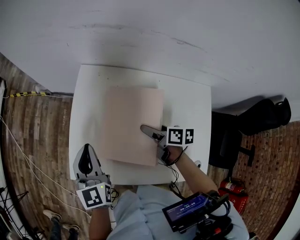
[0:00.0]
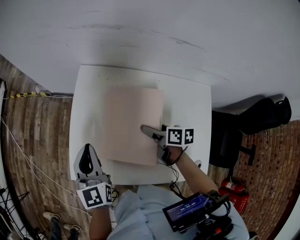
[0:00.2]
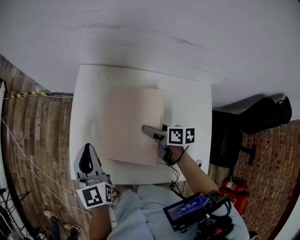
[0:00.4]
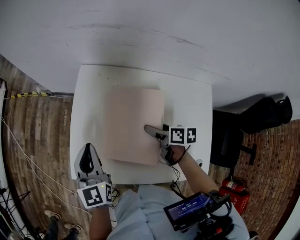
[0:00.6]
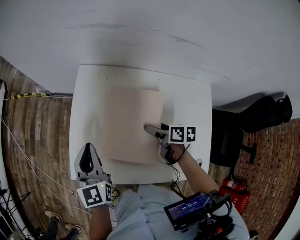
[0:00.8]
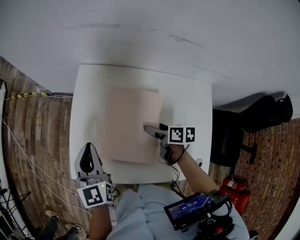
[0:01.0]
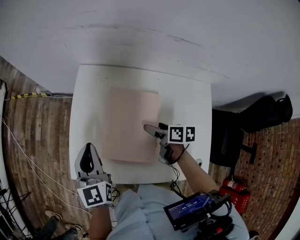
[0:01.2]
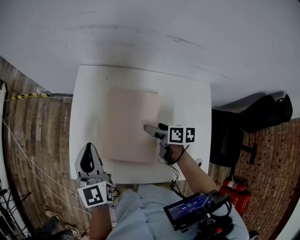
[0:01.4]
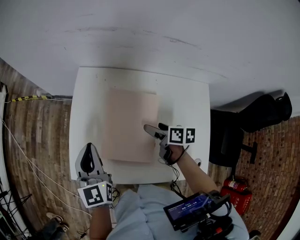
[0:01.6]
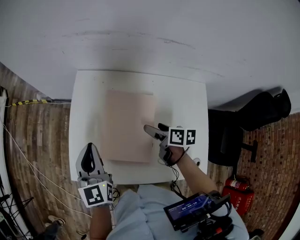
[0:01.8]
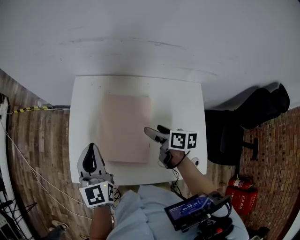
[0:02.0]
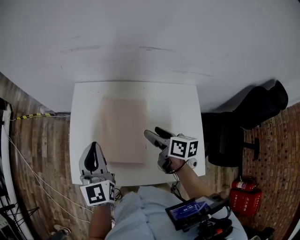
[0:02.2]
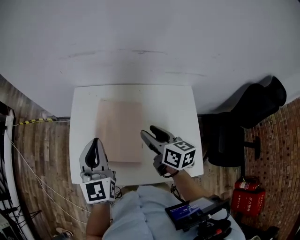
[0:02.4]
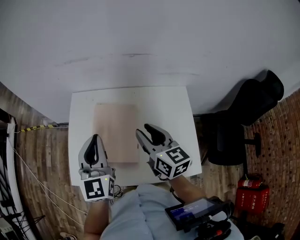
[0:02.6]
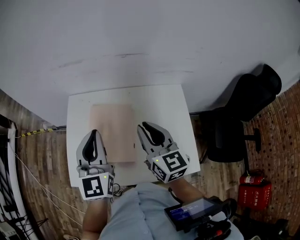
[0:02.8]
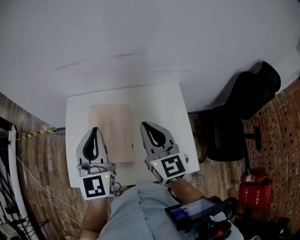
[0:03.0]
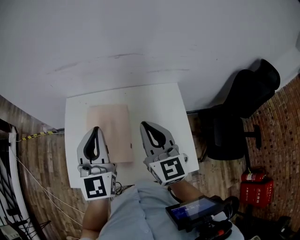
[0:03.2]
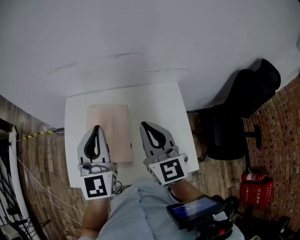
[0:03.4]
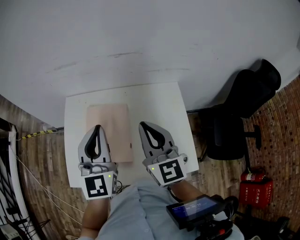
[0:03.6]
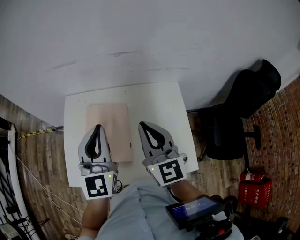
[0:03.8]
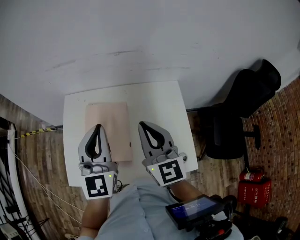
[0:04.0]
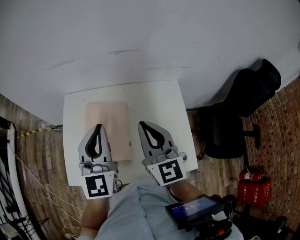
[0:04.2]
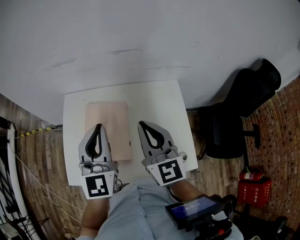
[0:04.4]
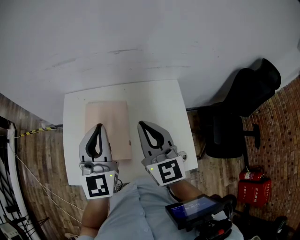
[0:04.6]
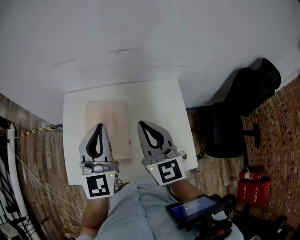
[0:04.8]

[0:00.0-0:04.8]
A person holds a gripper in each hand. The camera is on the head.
0:00.0 to 0:01.6: The grippers stay close to where they were, moving slightly.
0:01.6 to 0:03.2: The right gripper goes about 30 cm upward, points its fingers some 40 degrees further upward, and closes up; the left gripper is displaced to the right and upward by approximately 25 cm, and turns by approximately 30 degrees.
0:03.2 to 0:04.8: The grippers make only small movements.

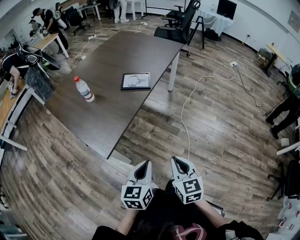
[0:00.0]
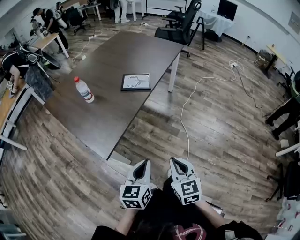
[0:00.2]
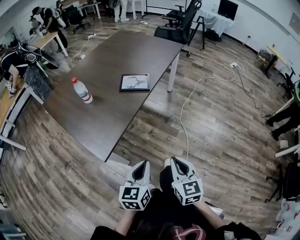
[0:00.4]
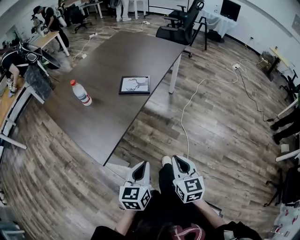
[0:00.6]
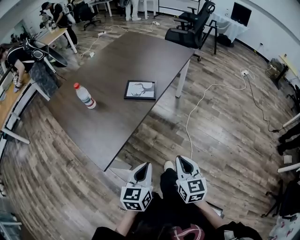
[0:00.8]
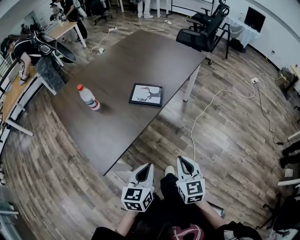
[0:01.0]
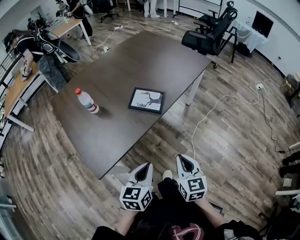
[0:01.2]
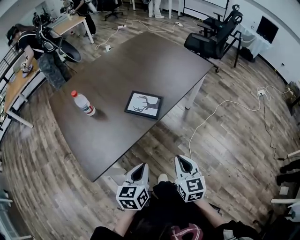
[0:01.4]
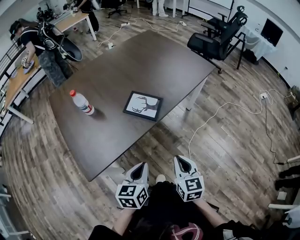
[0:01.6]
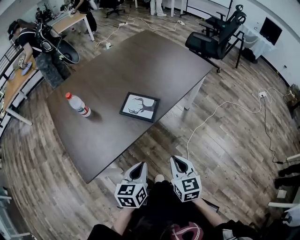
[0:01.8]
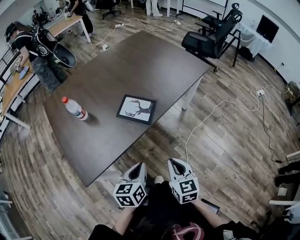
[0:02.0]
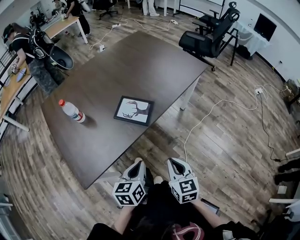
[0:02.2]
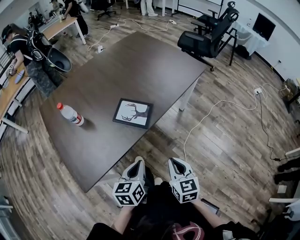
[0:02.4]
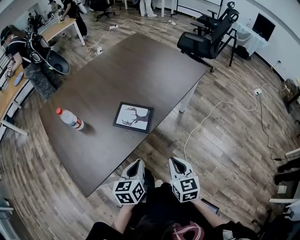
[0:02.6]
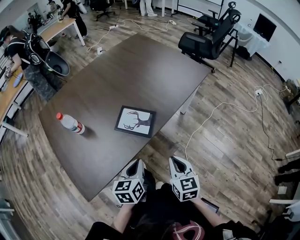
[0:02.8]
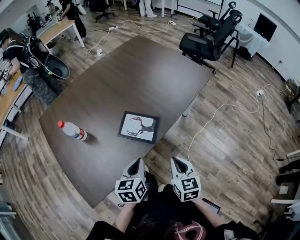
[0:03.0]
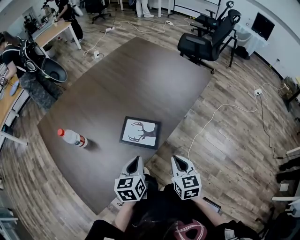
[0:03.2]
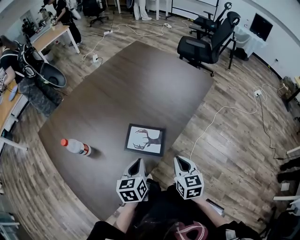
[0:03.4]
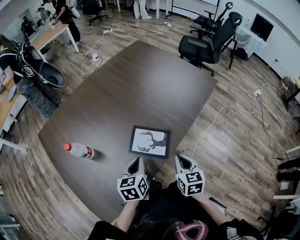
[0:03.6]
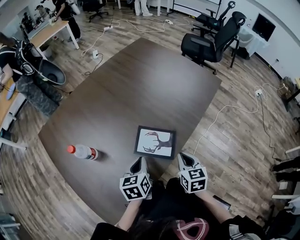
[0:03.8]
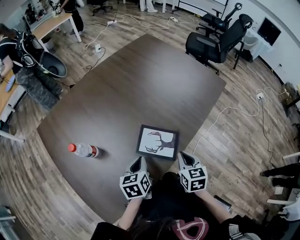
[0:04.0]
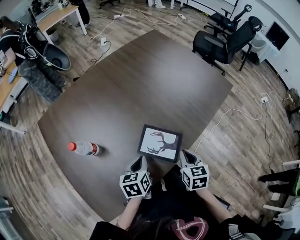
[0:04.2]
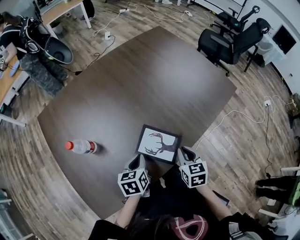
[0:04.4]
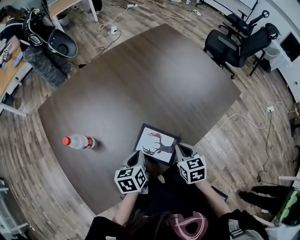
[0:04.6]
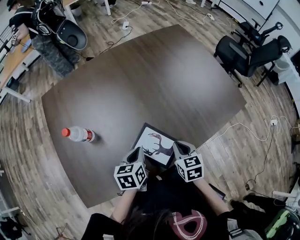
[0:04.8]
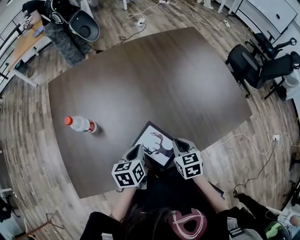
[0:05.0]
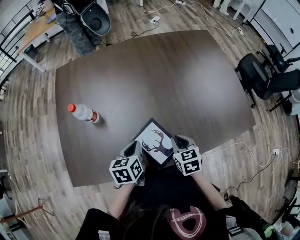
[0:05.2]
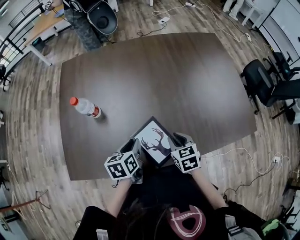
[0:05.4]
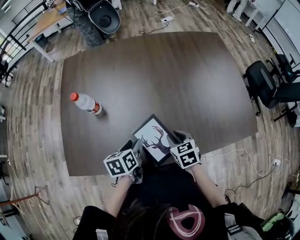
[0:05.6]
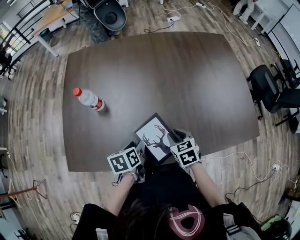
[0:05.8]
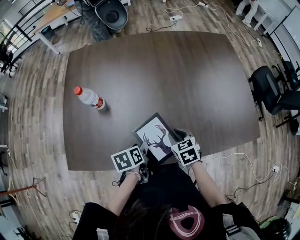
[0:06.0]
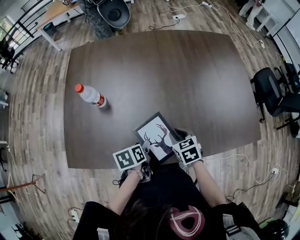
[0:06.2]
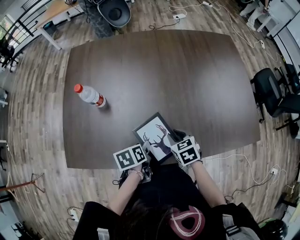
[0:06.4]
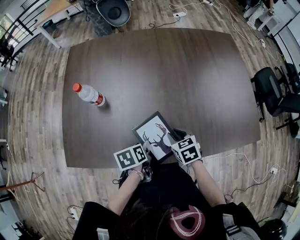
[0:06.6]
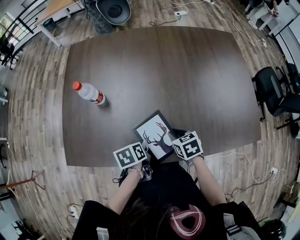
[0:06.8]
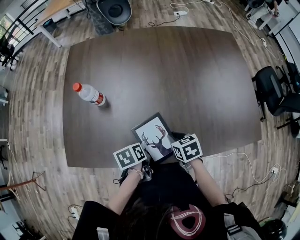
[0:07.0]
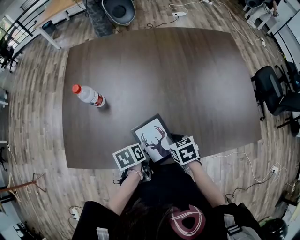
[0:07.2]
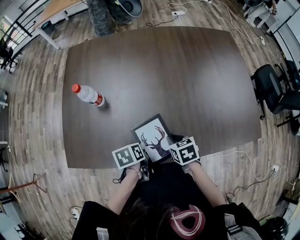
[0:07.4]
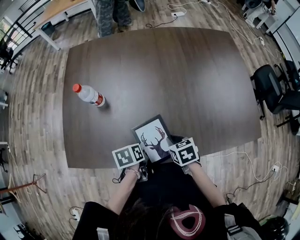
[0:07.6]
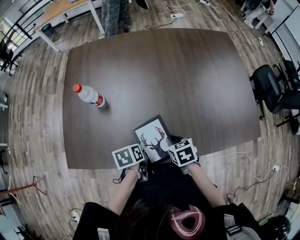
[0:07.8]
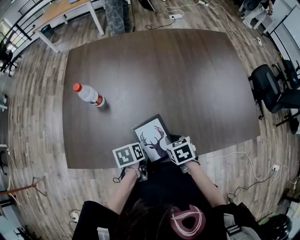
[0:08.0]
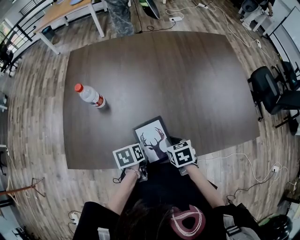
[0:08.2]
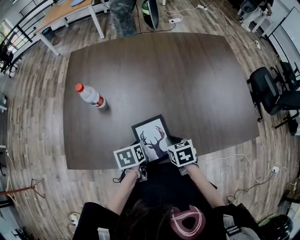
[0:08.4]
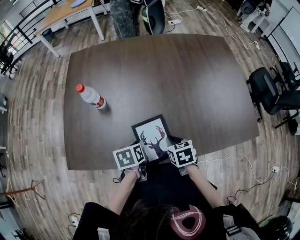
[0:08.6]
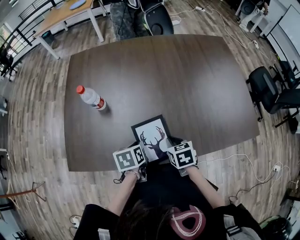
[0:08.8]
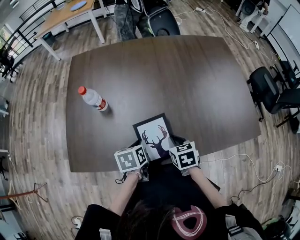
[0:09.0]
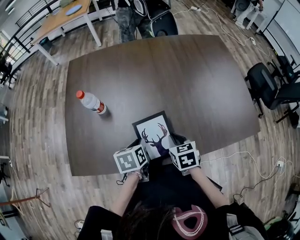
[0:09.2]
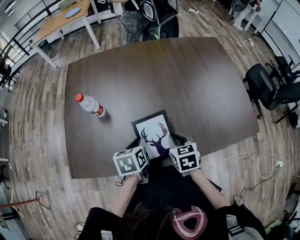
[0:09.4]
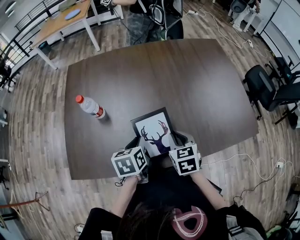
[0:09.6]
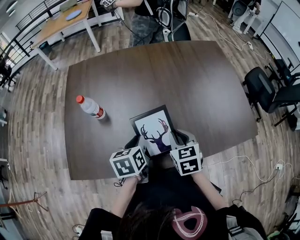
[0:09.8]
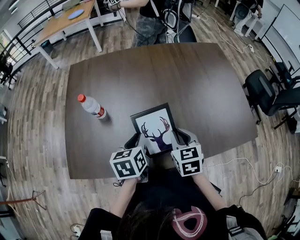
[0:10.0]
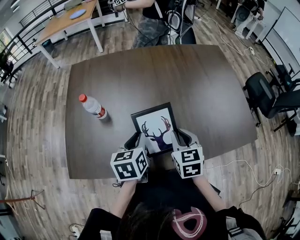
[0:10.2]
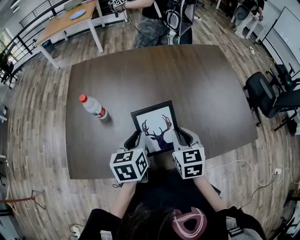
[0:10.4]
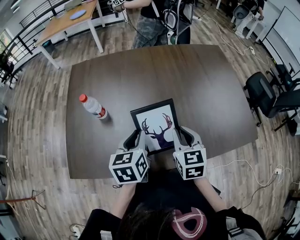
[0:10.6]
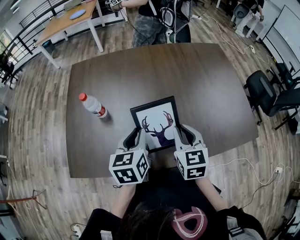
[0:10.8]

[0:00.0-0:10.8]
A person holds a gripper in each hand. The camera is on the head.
0:00.0 to 0:01.6: The grippers both shift forward by about 25 cm. The left gripper rotates approximately 20 degrees.
0:01.6 to 0:03.0: The two grippers go some 15 cm forward.
0:03.0 to 0:04.6: The left gripper shifts some 20 cm forward and to the left; the right gripper shifts about 20 cm forward, and swivels about 20 degrees.
0:04.6 to 0:06.2: The left gripper goes approximately 5 cm downward, turns by approximately 40 degrees, and opens up. Meanwhile the right gripper moves roughly 10 cm, rotates about 40 degrees, and opens up.
0:06.2 to 0:07.8: The left gripper closes up.
0:07.8 to 0:09.2: The left gripper travels upward by some 5 cm.
0:09.2 to 0:10.8: Both grippers move upward, some 15 cm. The left gripper turns by some 30 degrees. The right gripper changes its angle by some 30 degrees.

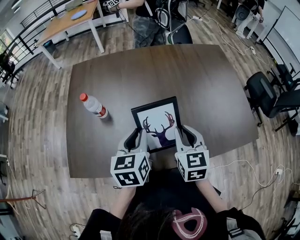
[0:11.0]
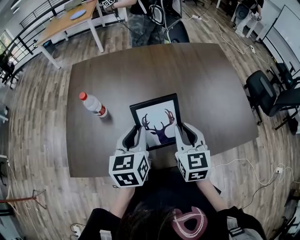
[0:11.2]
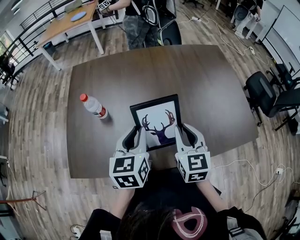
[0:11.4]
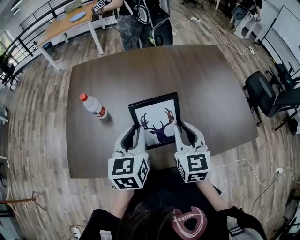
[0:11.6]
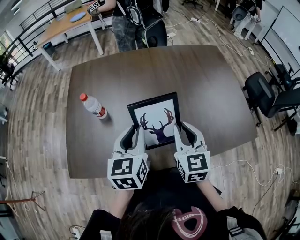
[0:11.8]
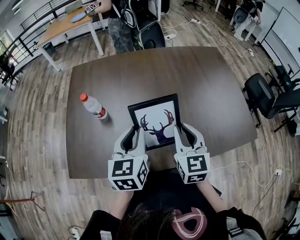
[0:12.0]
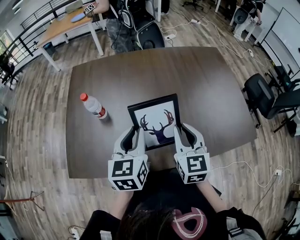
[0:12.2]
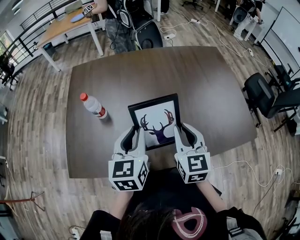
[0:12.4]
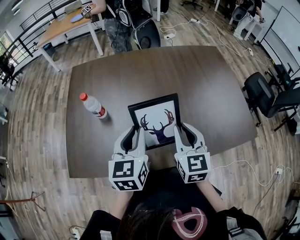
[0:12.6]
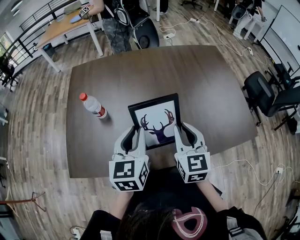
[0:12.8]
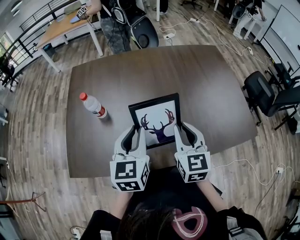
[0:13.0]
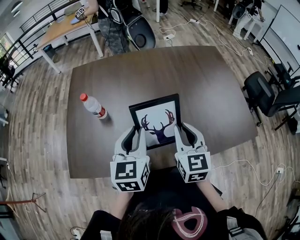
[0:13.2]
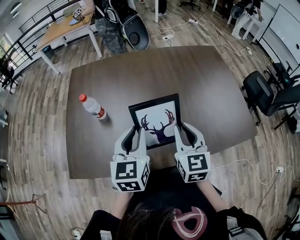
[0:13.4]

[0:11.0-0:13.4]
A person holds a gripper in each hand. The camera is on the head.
0:11.0 to 0:13.4: There are only small adjustments of the grippers.

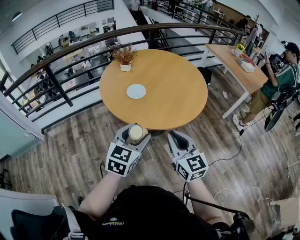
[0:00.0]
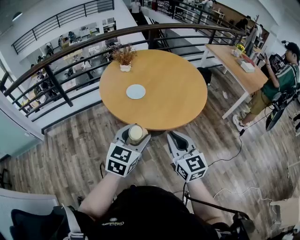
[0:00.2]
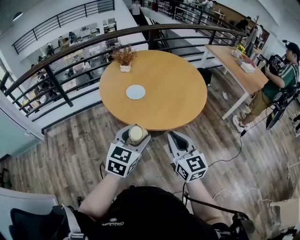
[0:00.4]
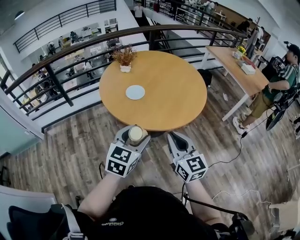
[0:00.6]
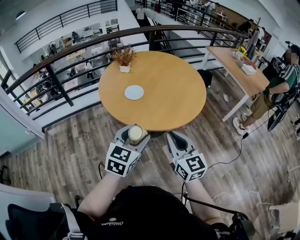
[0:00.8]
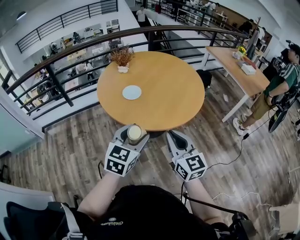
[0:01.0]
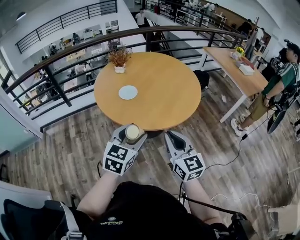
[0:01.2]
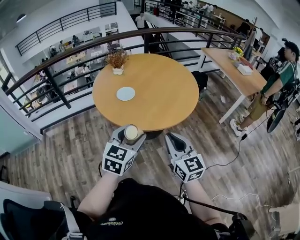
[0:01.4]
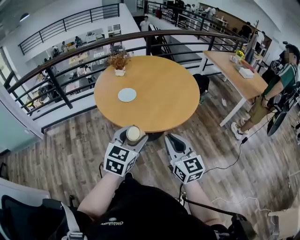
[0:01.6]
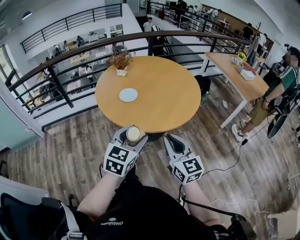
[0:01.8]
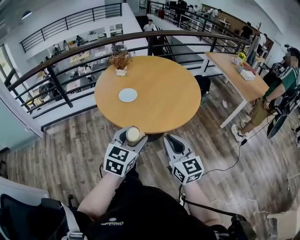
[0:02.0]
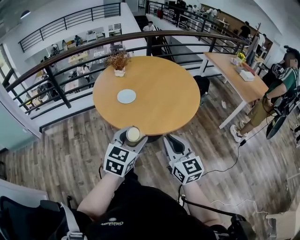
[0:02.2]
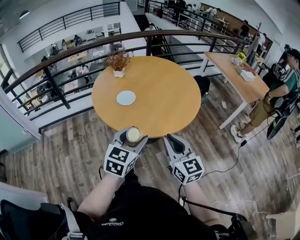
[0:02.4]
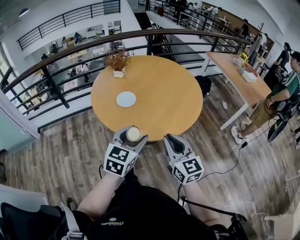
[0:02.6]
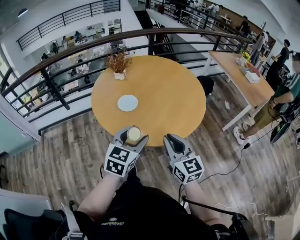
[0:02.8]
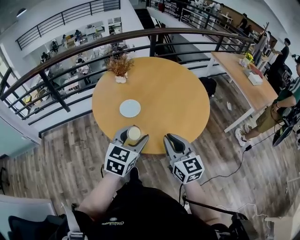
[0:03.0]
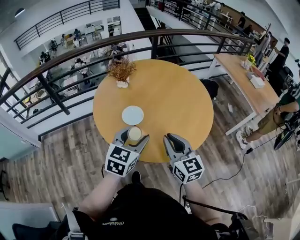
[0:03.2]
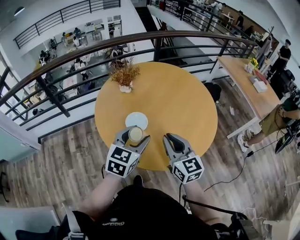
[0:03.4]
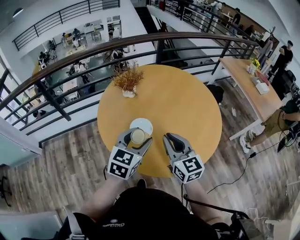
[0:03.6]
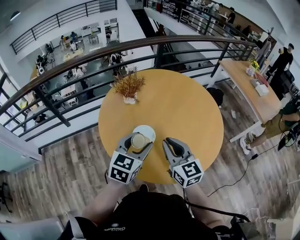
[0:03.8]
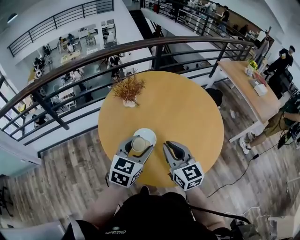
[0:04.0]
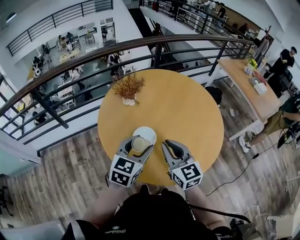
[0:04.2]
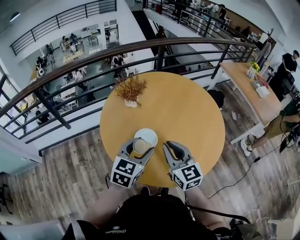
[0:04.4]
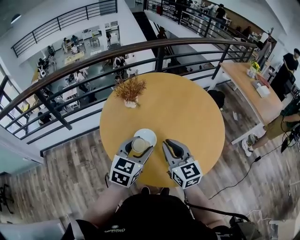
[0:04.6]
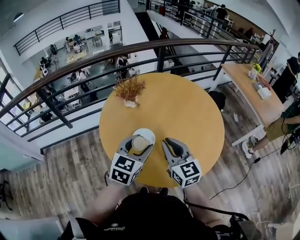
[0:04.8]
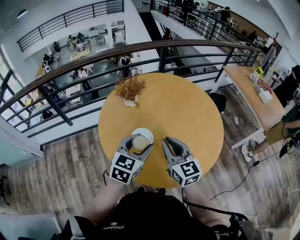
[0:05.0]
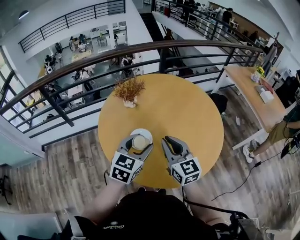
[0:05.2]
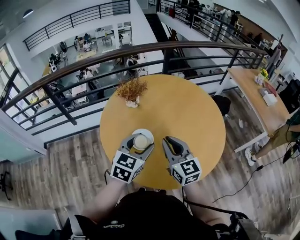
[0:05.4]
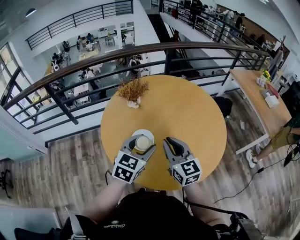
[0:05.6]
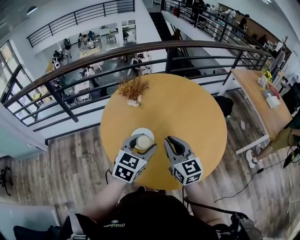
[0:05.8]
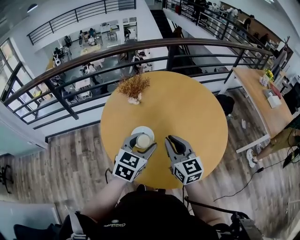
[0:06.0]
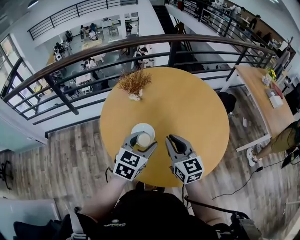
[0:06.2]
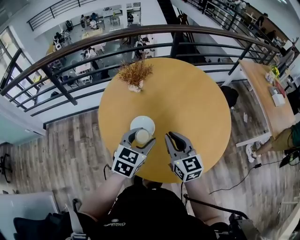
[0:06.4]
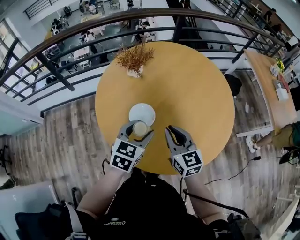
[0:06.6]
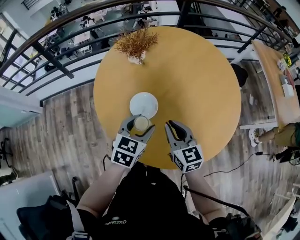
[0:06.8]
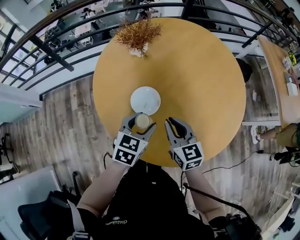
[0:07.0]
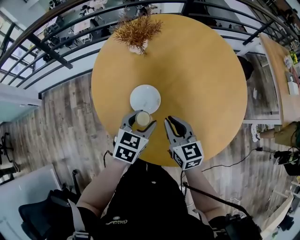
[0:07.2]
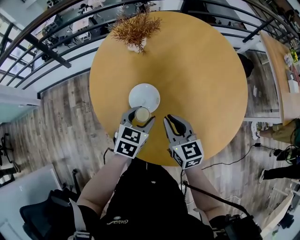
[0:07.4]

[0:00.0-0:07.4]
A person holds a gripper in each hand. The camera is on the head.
0:00.0 to 0:01.4: The two grippers go approximately 10 cm to the right.
0:01.4 to 0:03.0: Both grippers travel together forward, about 20 cm.
0:03.0 to 0:04.4: Both grippers travel together forward and to the left, about 20 cm.
0:04.4 to 0:06.0: The grippers both shift to the right by about 5 cm.
0:06.0 to 0:07.4: Both grippers move downward, roughly 15 cm.
